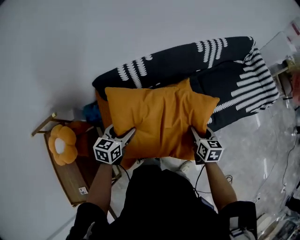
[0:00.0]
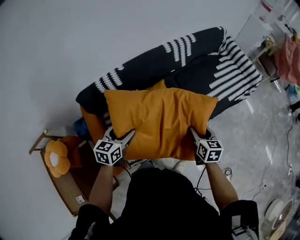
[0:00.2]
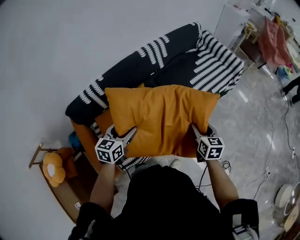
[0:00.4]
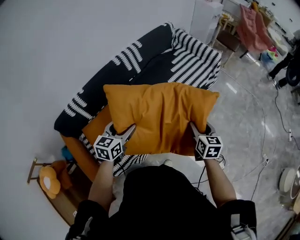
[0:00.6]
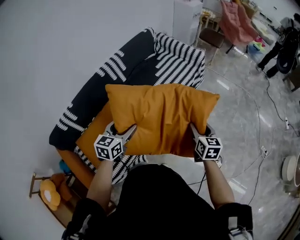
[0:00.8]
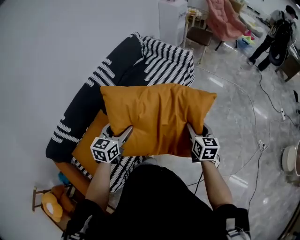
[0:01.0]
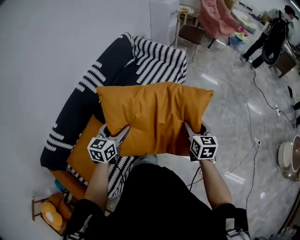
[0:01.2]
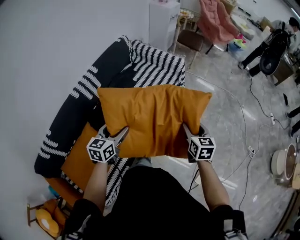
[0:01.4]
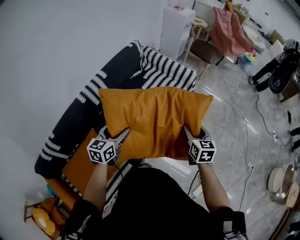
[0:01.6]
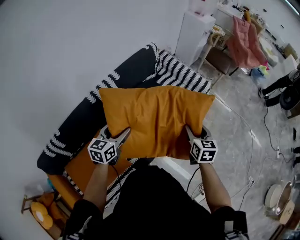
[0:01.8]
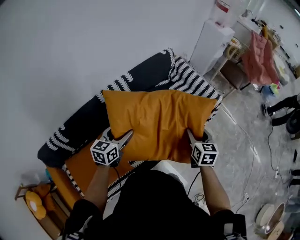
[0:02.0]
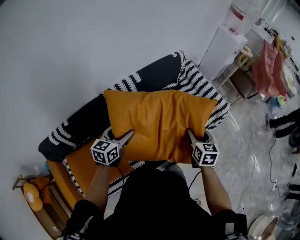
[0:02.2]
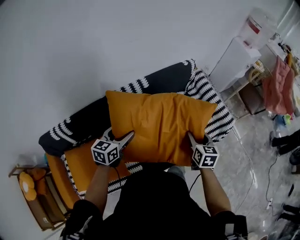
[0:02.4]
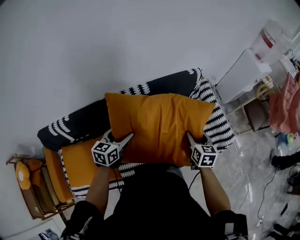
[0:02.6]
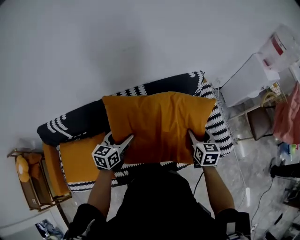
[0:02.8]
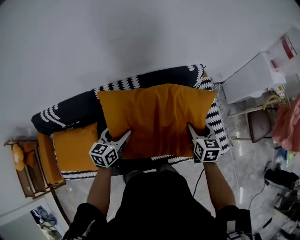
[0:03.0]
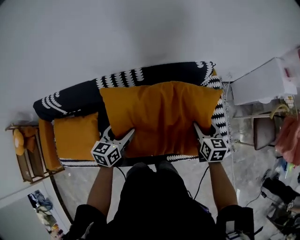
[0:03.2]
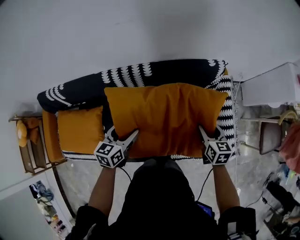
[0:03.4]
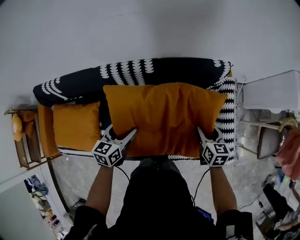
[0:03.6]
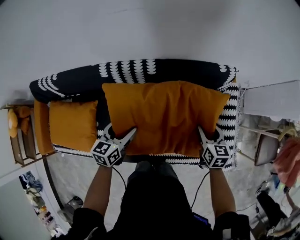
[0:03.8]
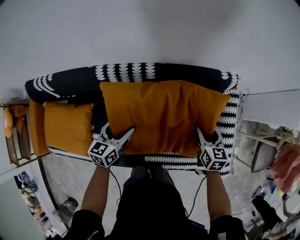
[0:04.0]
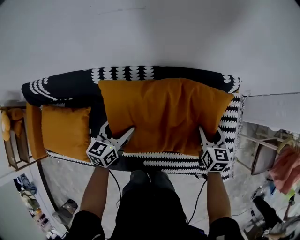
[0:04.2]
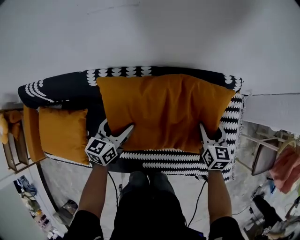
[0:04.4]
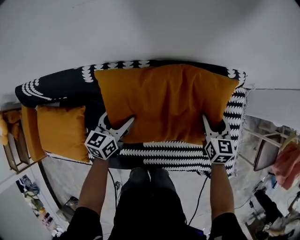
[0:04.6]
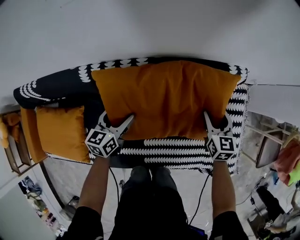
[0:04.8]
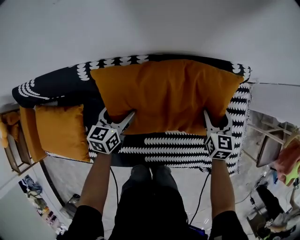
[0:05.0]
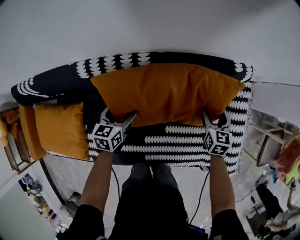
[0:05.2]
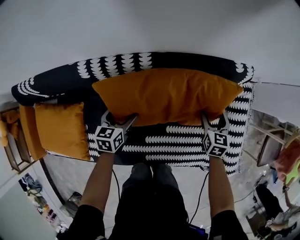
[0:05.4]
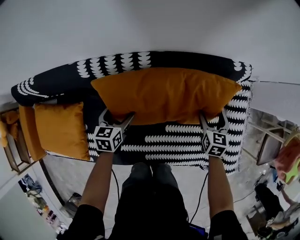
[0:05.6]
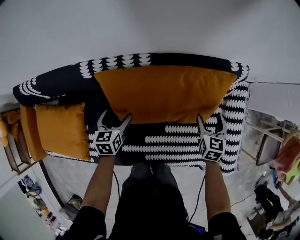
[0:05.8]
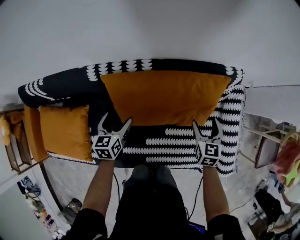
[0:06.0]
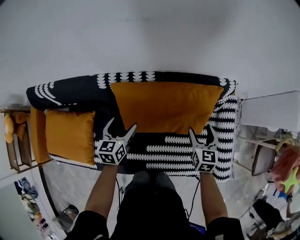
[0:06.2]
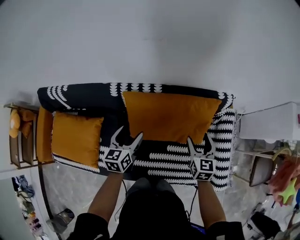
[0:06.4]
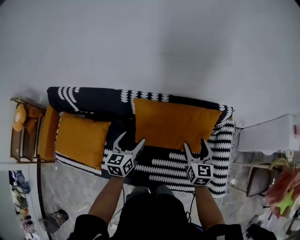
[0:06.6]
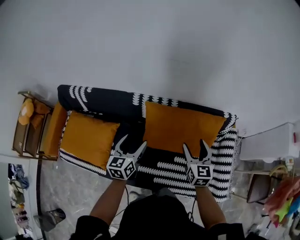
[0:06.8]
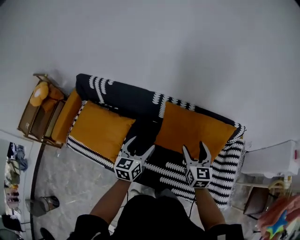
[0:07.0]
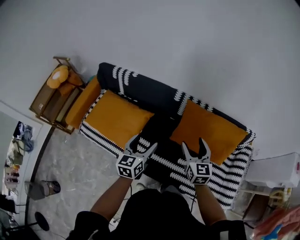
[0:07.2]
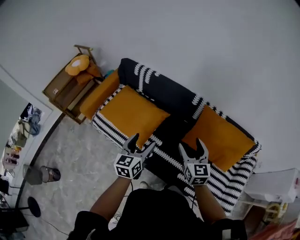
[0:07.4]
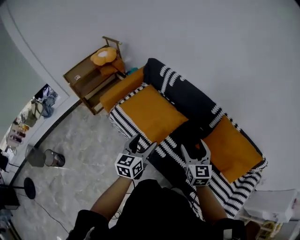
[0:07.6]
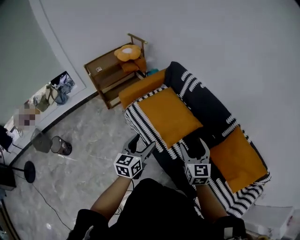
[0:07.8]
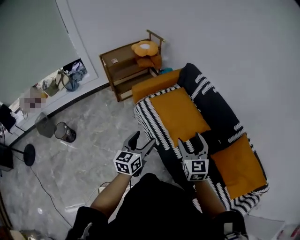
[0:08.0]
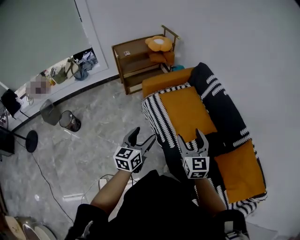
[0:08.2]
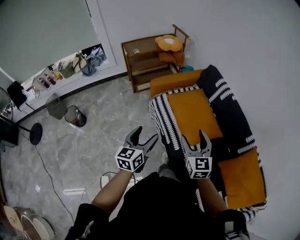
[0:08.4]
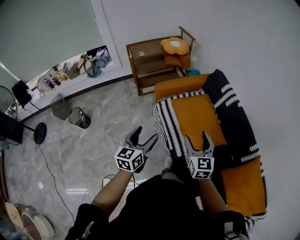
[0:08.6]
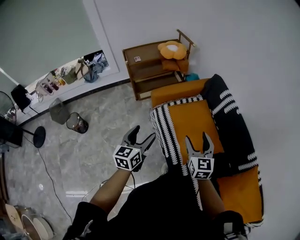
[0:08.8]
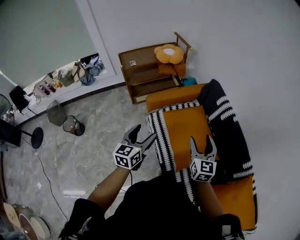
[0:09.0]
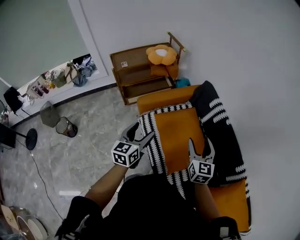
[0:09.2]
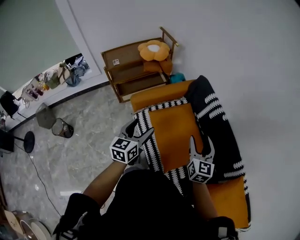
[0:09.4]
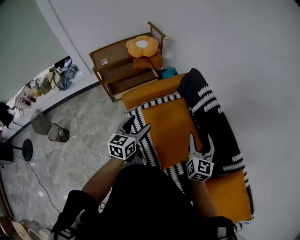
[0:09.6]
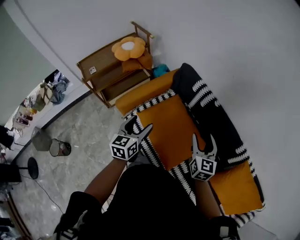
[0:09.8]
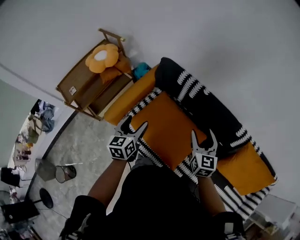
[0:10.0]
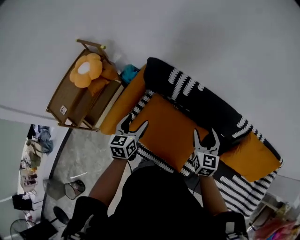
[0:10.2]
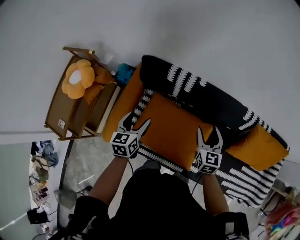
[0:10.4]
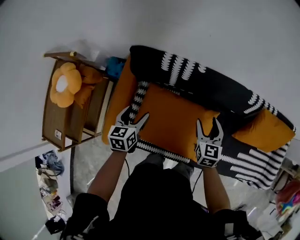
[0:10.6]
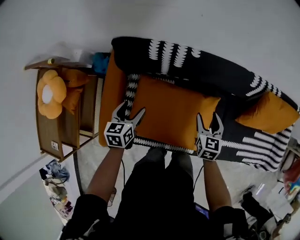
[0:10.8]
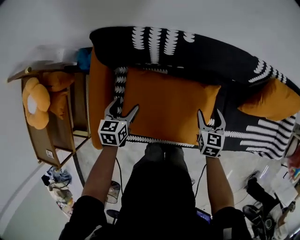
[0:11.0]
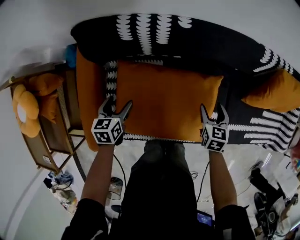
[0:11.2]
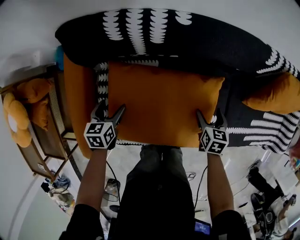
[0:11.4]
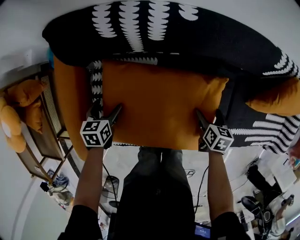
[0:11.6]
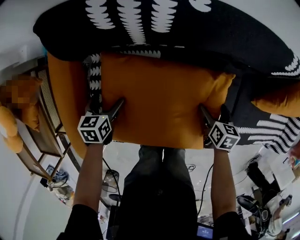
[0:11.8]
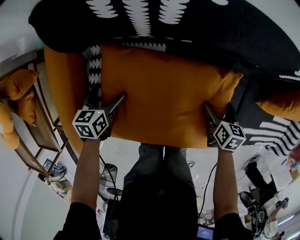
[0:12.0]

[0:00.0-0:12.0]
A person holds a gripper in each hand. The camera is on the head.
0:00.0 to 0:01.6: Both grippers are carried roughly 60 cm. The right gripper turns by about 40 degrees. The left gripper rotates roughly 30 degrees.
0:01.6 to 0:03.0: The left gripper moves roughly 25 cm, and turns by some 40 degrees. The right gripper ends up some 50 cm from where it was, and changes its angle by approximately 40 degrees.
0:03.0 to 0:04.4: The left gripper goes roughly 15 cm downward and forward. Meanwhile the right gripper goes about 20 cm forward and downward.
0:06.0 to 0:07.6: The two grippers travel together, roughly 50 cm. The right gripper changes its angle by some 60 degrees; the left gripper swivels roughly 40 degrees.
0:07.6 to 0:09.0: The right gripper ends up some 30 cm from where it was, and turns by approximately 20 degrees, while the left gripper moves about 25 cm, and rotates some 30 degrees.
0:09.0 to 0:10.4: The right gripper changes place by roughly 20 cm, and changes its angle by some 50 degrees; the left gripper changes place by about 40 cm, and rotates approximately 50 degrees.
0:10.4 to 0:12.0: The two grippers go some 35 cm downward. The left gripper swivels some 40 degrees; the right gripper tilts its fingers some 40 degrees downward, and opens its fingers.

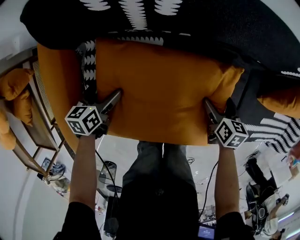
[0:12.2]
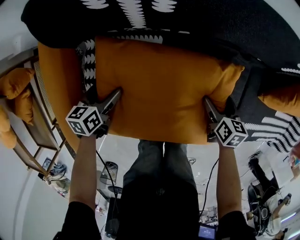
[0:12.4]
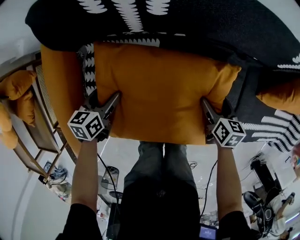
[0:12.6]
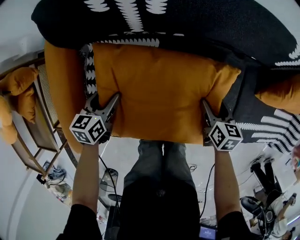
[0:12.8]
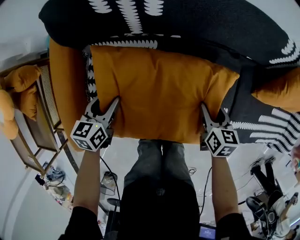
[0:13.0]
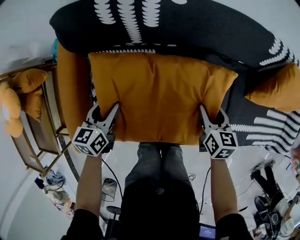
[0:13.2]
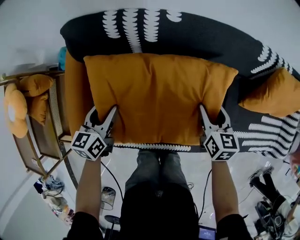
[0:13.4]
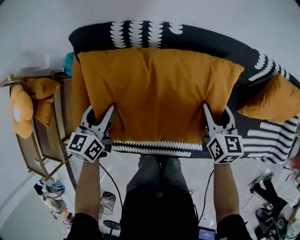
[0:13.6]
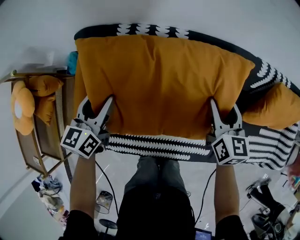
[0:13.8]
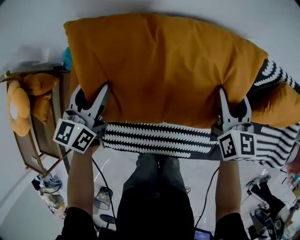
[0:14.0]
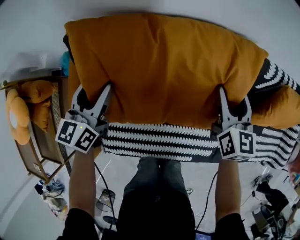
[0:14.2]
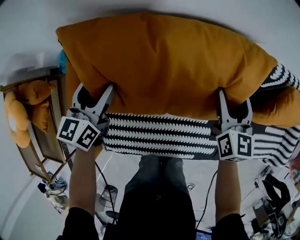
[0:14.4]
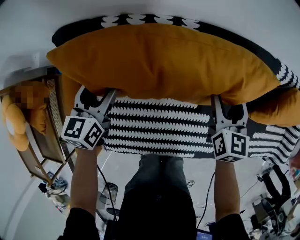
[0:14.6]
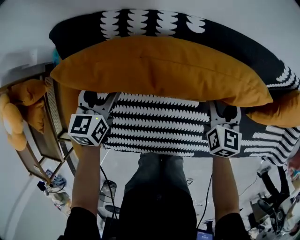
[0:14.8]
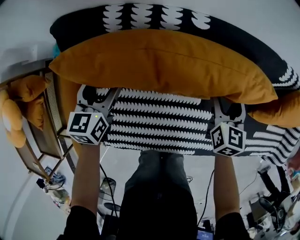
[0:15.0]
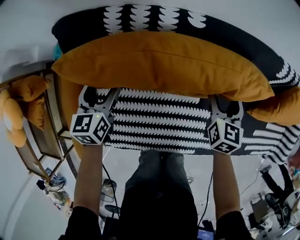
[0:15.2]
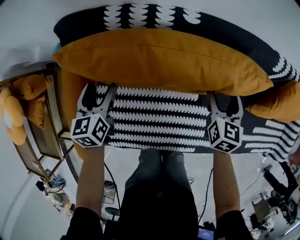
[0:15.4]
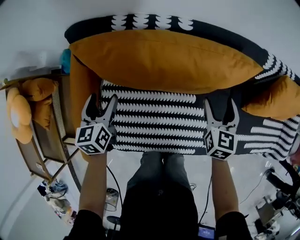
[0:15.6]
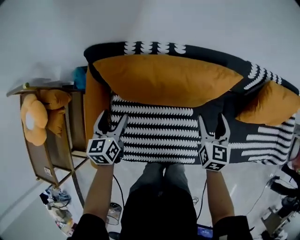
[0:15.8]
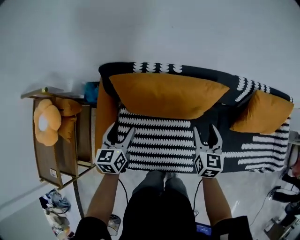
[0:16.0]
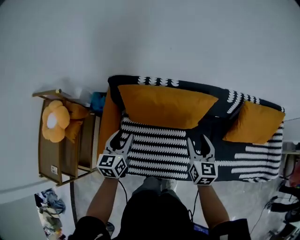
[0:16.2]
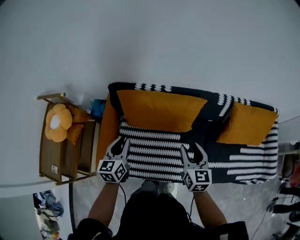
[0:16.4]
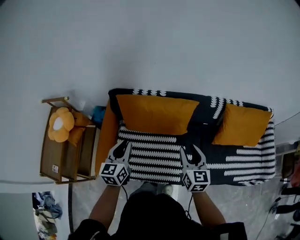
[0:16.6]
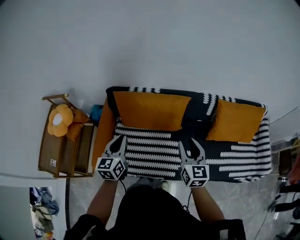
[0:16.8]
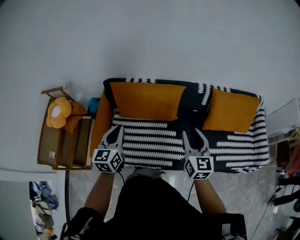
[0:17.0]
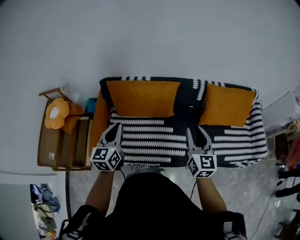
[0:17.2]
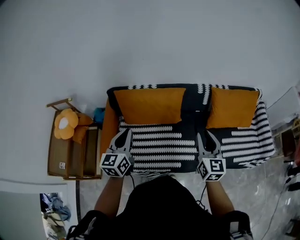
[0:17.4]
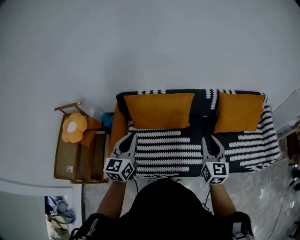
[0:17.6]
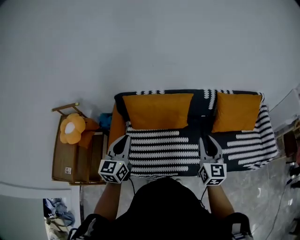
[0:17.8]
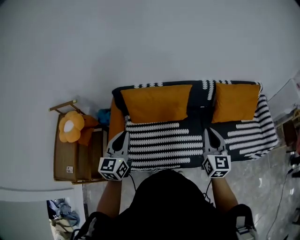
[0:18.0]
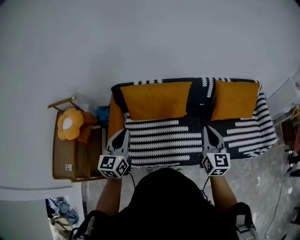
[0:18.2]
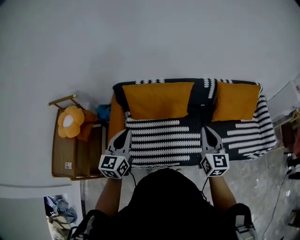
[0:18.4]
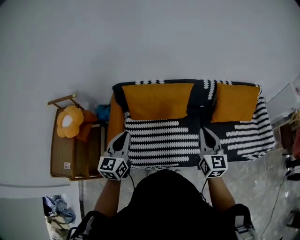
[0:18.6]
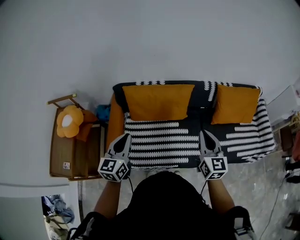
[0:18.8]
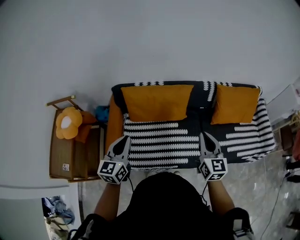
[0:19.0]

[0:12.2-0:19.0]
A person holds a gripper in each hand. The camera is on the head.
0:12.2 to 0:13.6: Both grippers move upward, some 20 cm. The left gripper swivels some 30 degrees, and closes up. The right gripper swivels roughly 30 degrees, and closes its fingers.
0:13.6 to 0:15.0: The right gripper heads downward and forward, covering about 10 cm, while the left gripper is displaced forward and downward by approximately 15 cm.
0:15.0 to 0:16.2: The grippers both shift upward and backward by some 25 cm.
0:16.2 to 0:17.6: The left gripper is displaced upward, backward and to the right by some 25 cm, turns by some 20 degrees, and closes. Meanwhile the right gripper is displaced backward, upward and to the right by about 25 cm.
0:17.6 to 0:19.0: The grippers both shift to the left by roughly 5 cm.

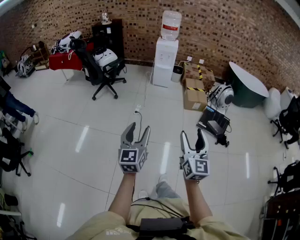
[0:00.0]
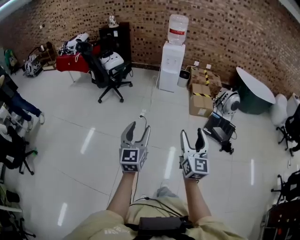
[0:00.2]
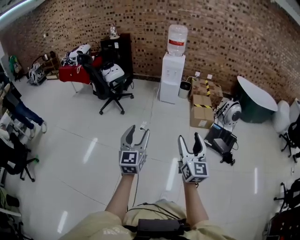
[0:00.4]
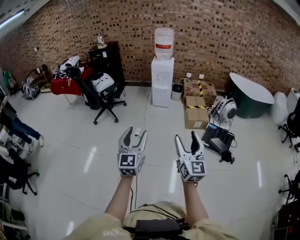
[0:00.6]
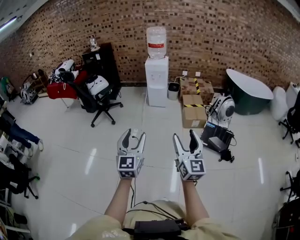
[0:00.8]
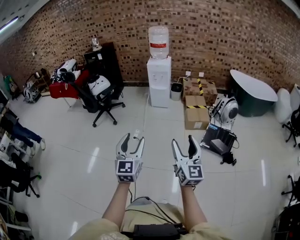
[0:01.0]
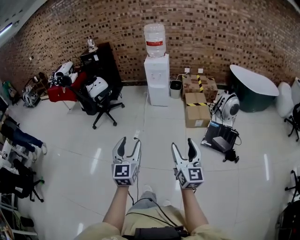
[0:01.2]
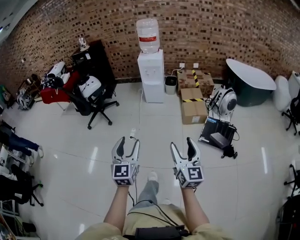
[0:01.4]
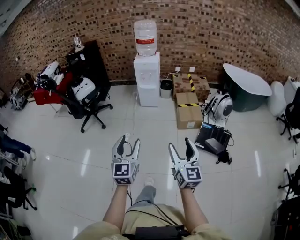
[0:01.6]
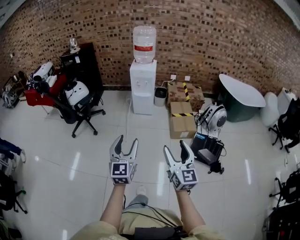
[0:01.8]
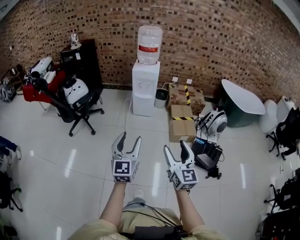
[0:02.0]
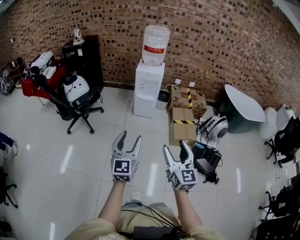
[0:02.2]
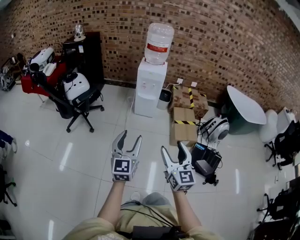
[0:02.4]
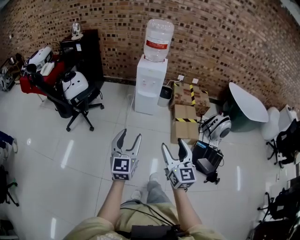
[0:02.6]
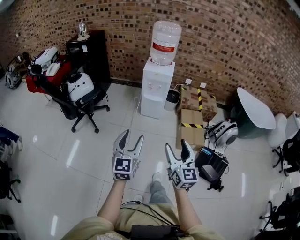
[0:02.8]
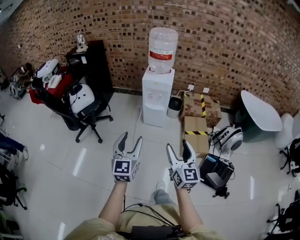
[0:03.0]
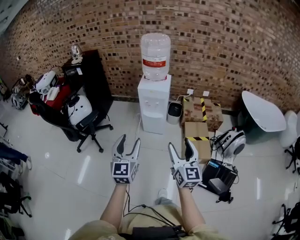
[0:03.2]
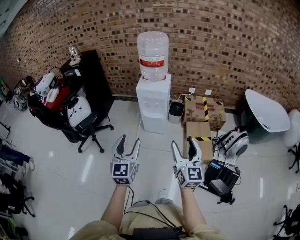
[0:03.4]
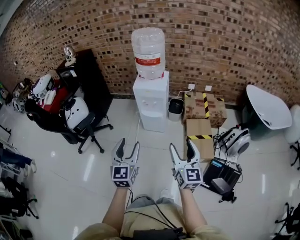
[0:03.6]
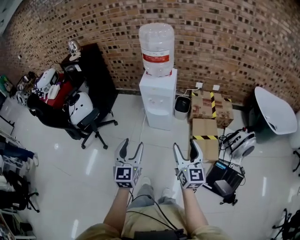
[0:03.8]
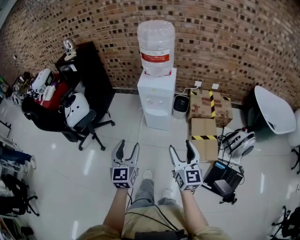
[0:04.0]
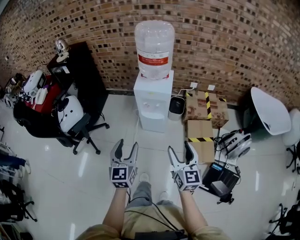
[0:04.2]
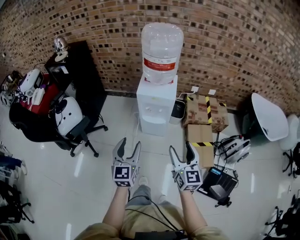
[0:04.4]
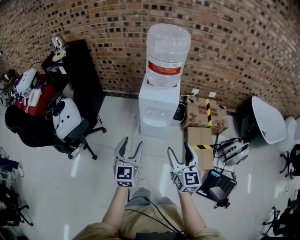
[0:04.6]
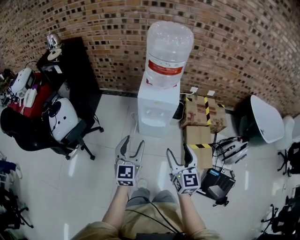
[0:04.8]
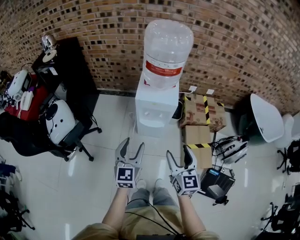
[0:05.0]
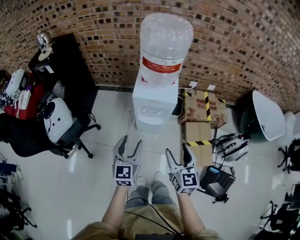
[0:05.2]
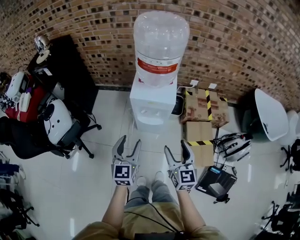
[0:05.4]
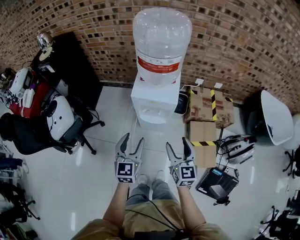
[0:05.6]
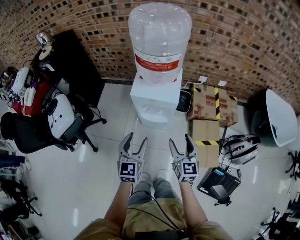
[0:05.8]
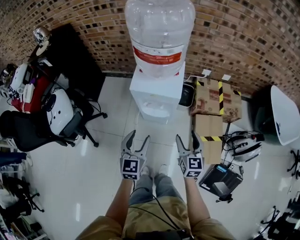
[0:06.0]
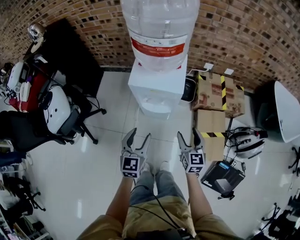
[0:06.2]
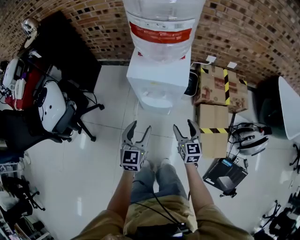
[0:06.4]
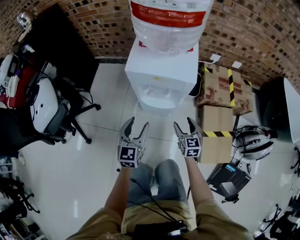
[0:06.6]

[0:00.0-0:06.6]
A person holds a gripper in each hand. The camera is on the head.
0:00.0 to 0:01.6: The grippers both shift forward and to the right by some 35 cm.
0:01.6 to 0:03.2: The two grippers travel together, forward, about 40 cm.
0:03.2 to 0:05.0: The grippers both shift forward by approximately 30 cm.
0:05.0 to 0:06.6: Both grippers travel together downward and forward, roughly 40 cm.
